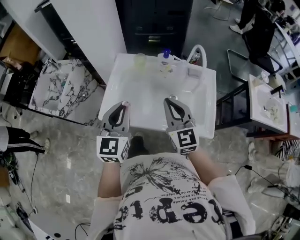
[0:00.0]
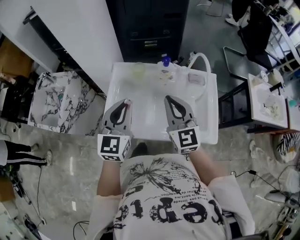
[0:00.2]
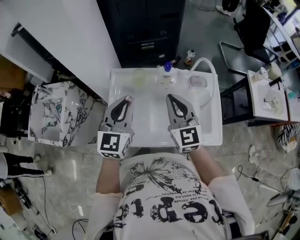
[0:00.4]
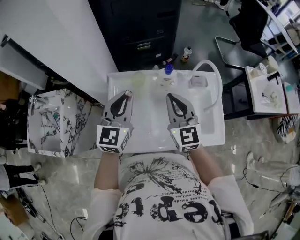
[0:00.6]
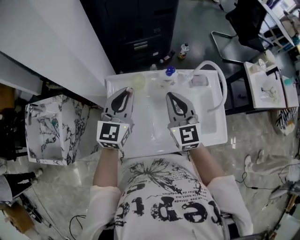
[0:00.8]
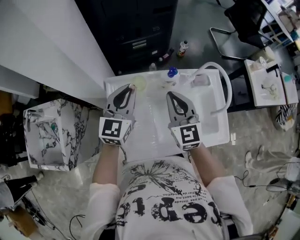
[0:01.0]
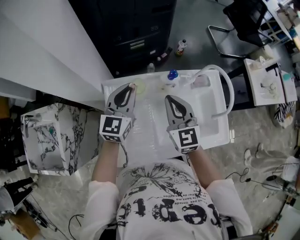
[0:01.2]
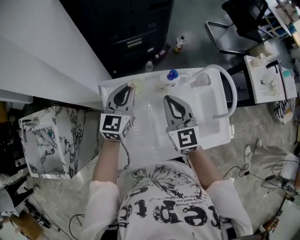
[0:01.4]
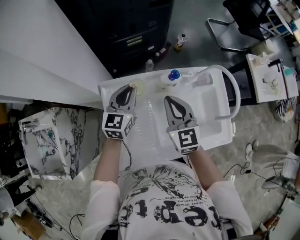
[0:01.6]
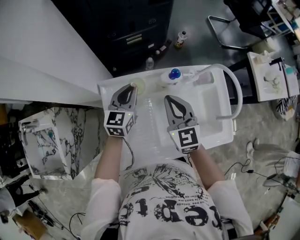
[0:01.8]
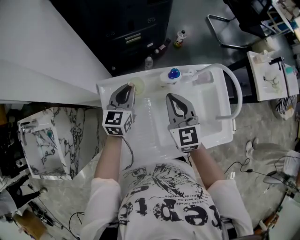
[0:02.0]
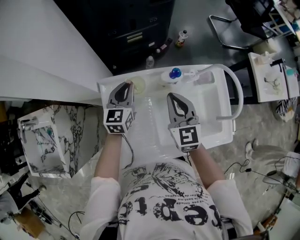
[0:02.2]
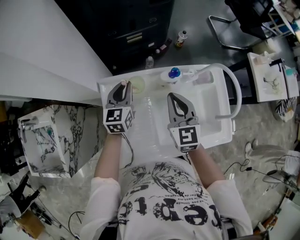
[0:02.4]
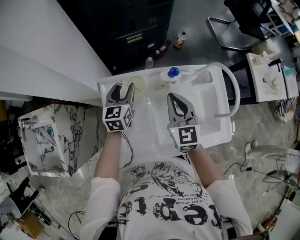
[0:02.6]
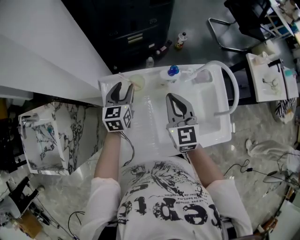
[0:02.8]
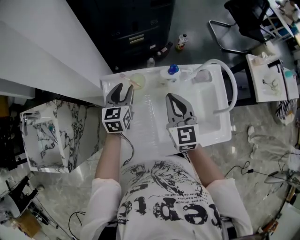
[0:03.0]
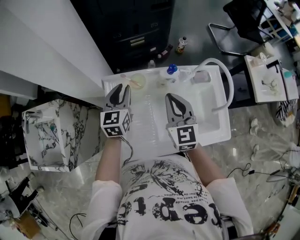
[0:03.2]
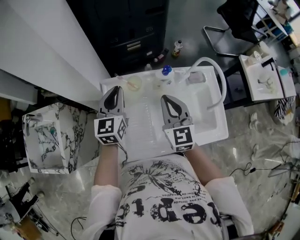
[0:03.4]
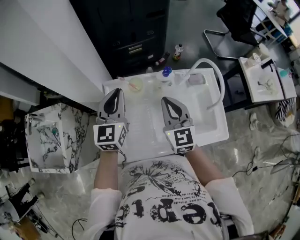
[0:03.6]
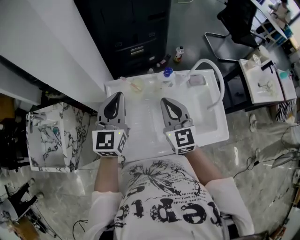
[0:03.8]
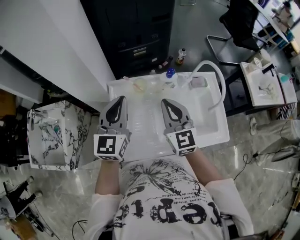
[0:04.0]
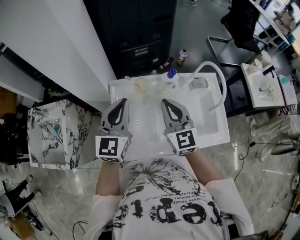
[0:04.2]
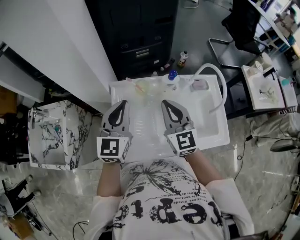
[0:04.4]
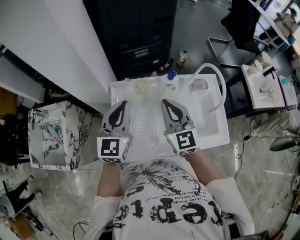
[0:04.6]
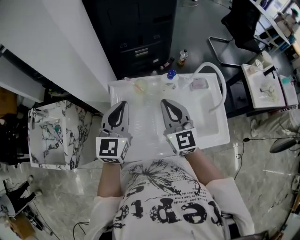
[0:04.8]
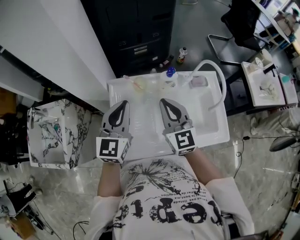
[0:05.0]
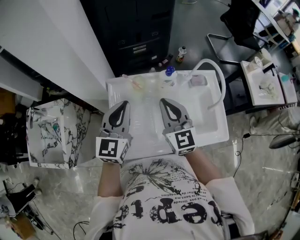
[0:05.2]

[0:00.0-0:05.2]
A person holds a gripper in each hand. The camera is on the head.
0:00.0 to 0:01.8: The right gripper moves forward and downward, about 25 cm, and turns by some 20 degrees. The left gripper shifts roughly 35 cm forward and downward, and turns by approximately 30 degrees.
0:01.8 to 0:03.4: The right gripper goes some 5 cm backward. Meanwhile the left gripper moves upward and backward, about 10 cm, and opens and closes again.
0:03.4 to 0:05.2: The left gripper moves backward and upward, some 10 cm.

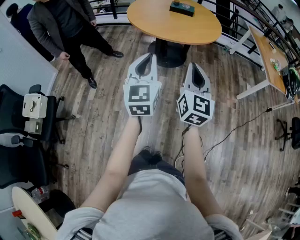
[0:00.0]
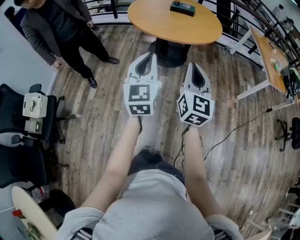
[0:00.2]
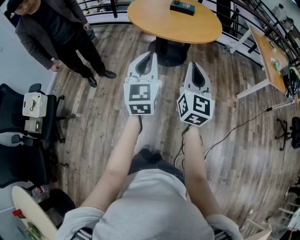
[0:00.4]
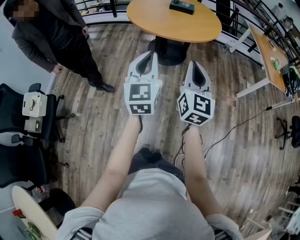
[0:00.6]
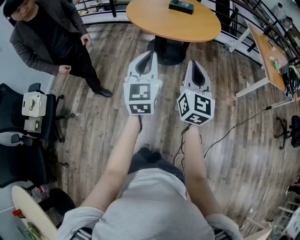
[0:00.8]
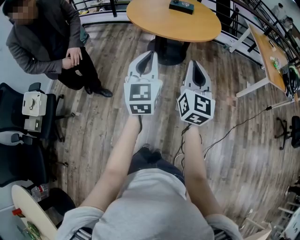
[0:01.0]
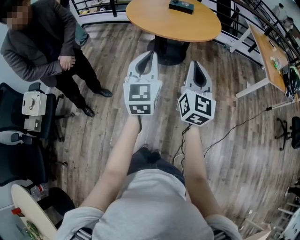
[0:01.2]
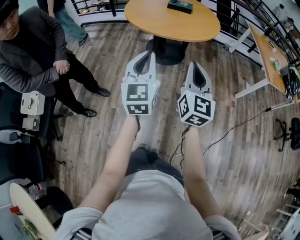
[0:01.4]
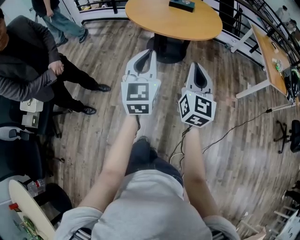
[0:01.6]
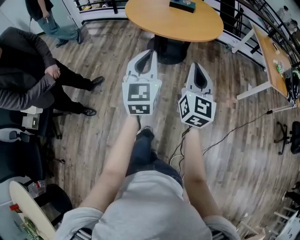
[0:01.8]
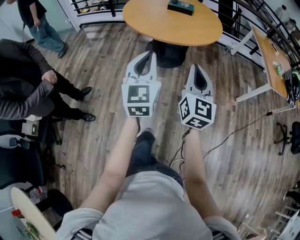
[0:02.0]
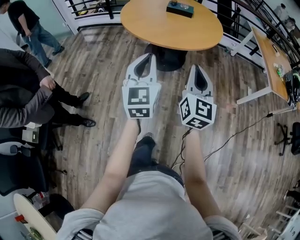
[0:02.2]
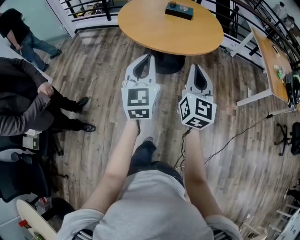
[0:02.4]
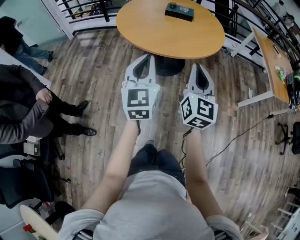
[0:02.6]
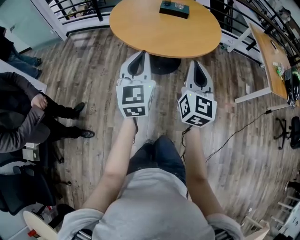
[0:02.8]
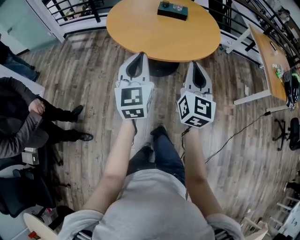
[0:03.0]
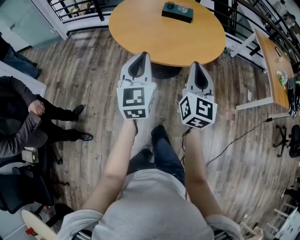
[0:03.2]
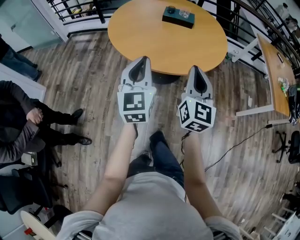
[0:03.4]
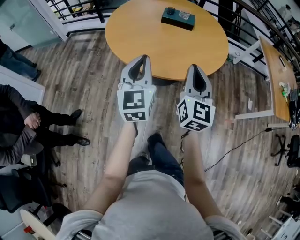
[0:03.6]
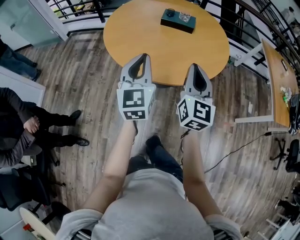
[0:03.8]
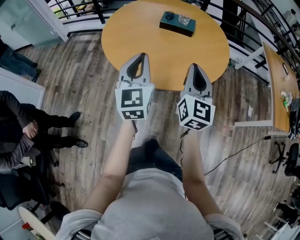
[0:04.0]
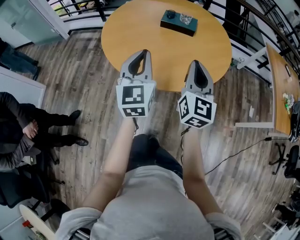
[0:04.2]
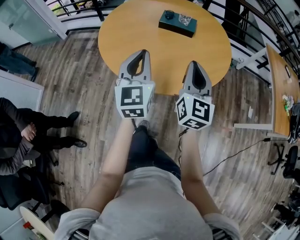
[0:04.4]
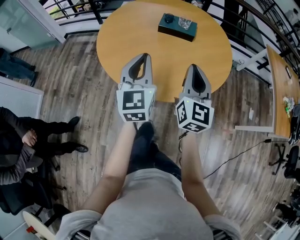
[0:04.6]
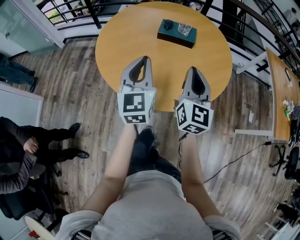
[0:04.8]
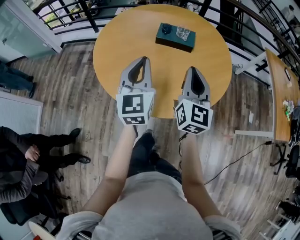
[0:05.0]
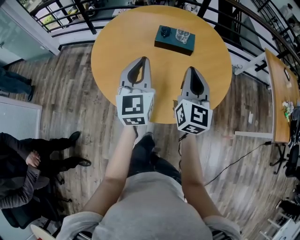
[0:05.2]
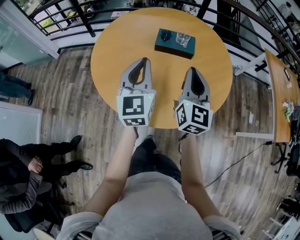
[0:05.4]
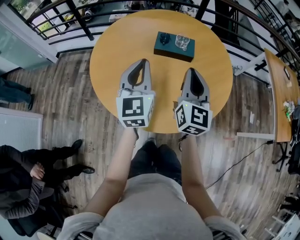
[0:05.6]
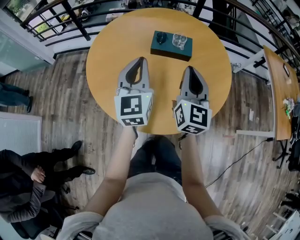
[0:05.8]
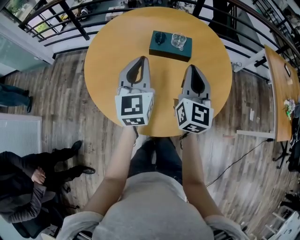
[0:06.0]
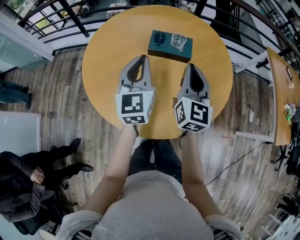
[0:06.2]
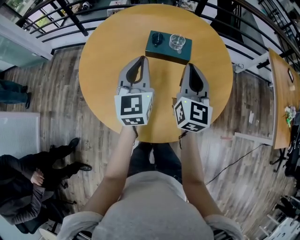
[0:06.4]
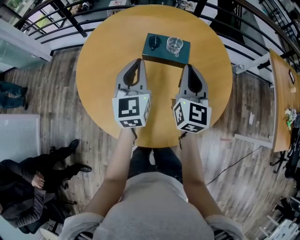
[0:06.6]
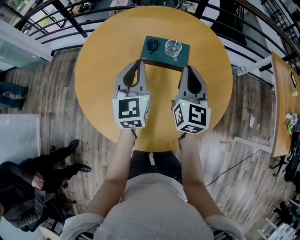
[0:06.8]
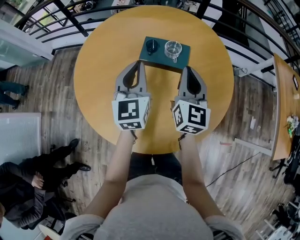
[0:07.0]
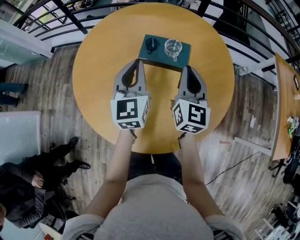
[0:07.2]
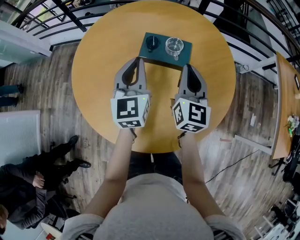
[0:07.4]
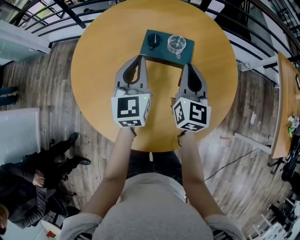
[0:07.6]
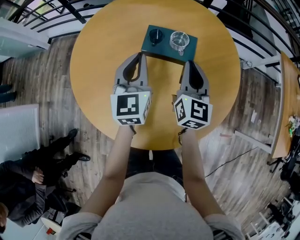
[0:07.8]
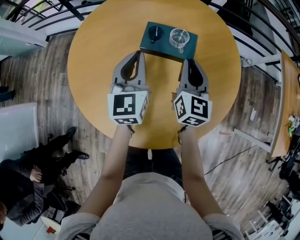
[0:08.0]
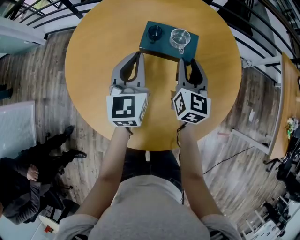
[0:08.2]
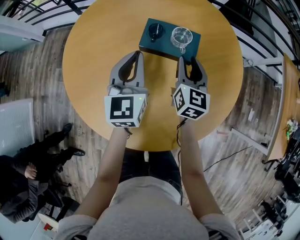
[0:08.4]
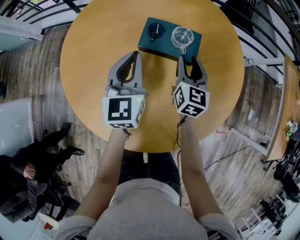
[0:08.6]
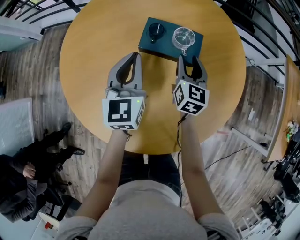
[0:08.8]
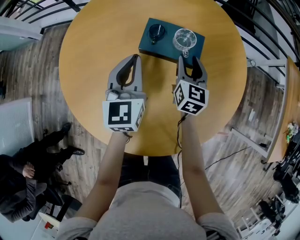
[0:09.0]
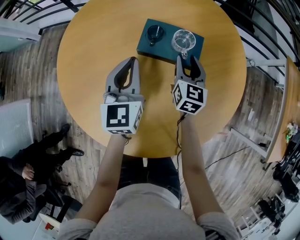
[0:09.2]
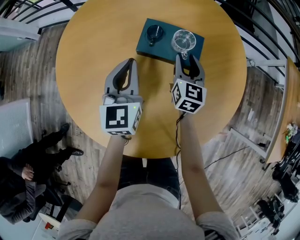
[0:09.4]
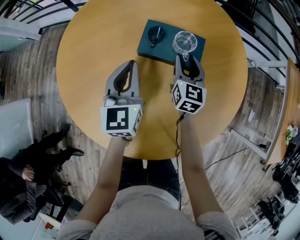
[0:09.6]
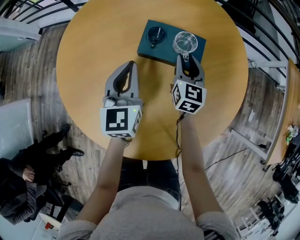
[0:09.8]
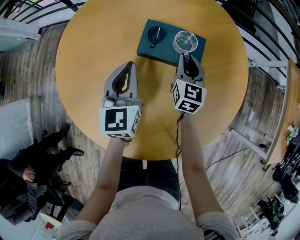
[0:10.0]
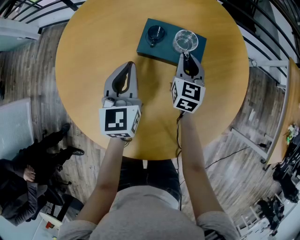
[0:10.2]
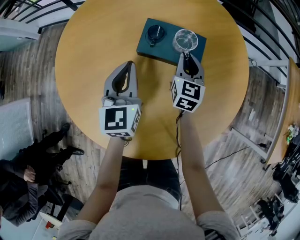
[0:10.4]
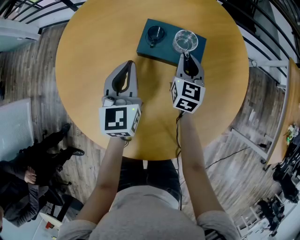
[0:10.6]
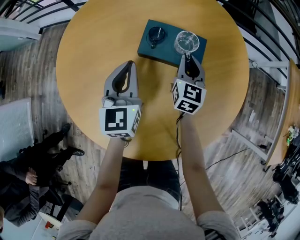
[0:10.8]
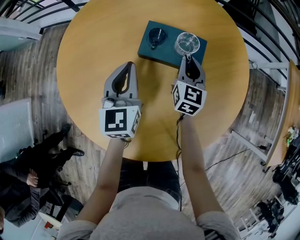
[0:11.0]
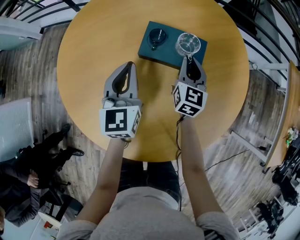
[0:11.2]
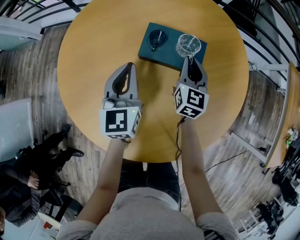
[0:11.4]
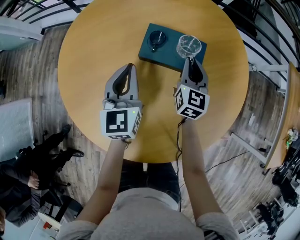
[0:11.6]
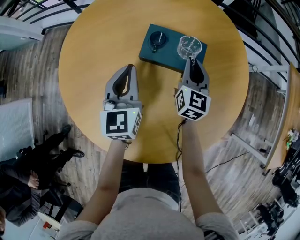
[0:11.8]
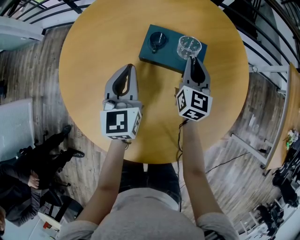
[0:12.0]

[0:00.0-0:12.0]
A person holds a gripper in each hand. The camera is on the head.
0:00.0 to 0:01.6: The grippers stay close to where they were, moving slightly.
0:01.6 to 0:03.0: The grippers both shift forward by about 25 cm.
0:03.0 to 0:04.4: The grippers both shift forward by approximately 25 cm.
0:04.4 to 0:06.0: The grippers both shift forward by roughly 20 cm.
0:06.0 to 0:07.6: Both grippers move forward and downward, approximately 15 cm.
0:07.6 to 0:09.0: The right gripper moves downward and forward, about 15 cm, and opens. The left gripper shifts approximately 5 cm downward.
0:09.0 to 0:10.4: The right gripper closes its fingers.
0:10.4 to 0:12.0: The grippers stay close to where they were, moving slightly.

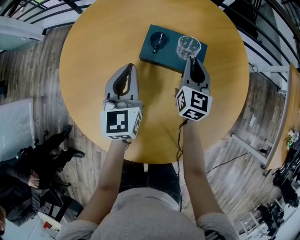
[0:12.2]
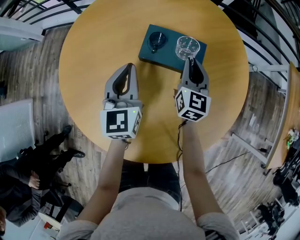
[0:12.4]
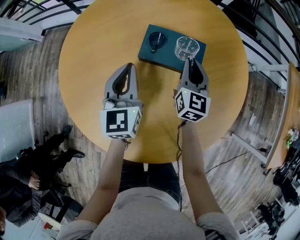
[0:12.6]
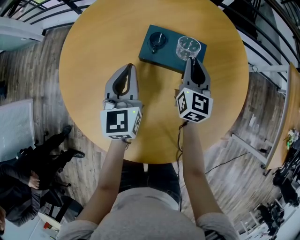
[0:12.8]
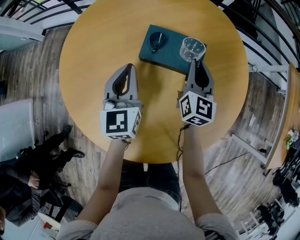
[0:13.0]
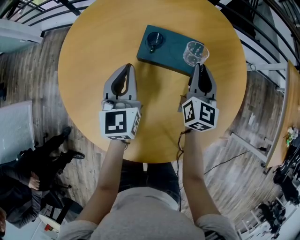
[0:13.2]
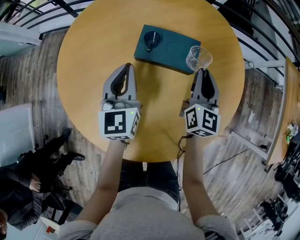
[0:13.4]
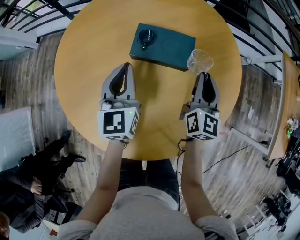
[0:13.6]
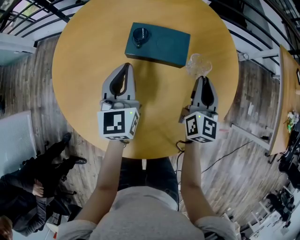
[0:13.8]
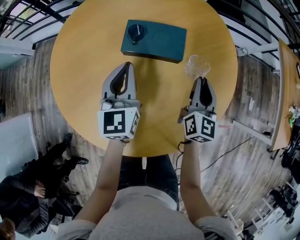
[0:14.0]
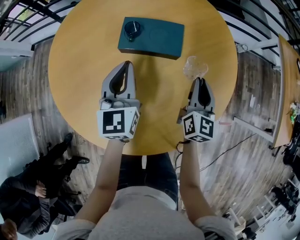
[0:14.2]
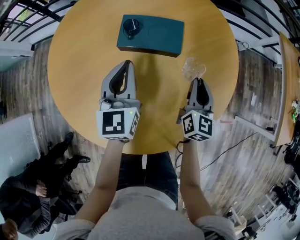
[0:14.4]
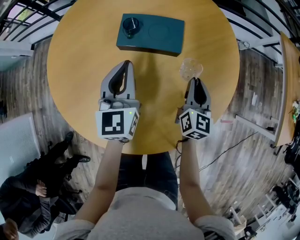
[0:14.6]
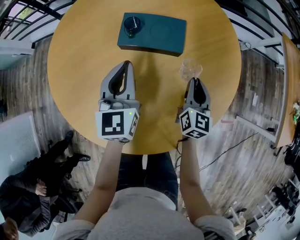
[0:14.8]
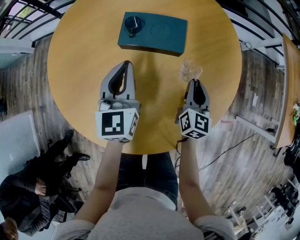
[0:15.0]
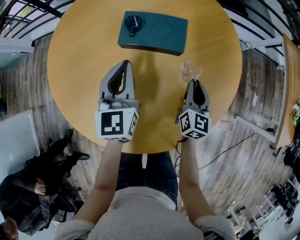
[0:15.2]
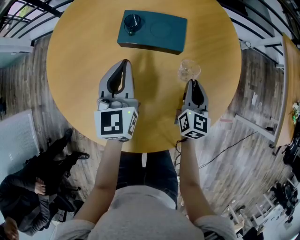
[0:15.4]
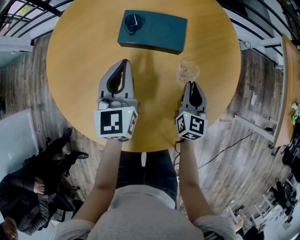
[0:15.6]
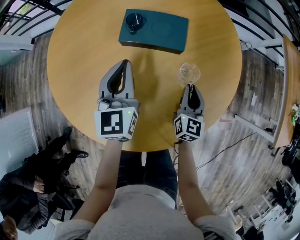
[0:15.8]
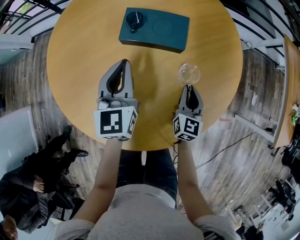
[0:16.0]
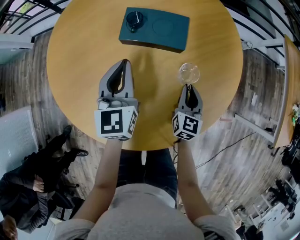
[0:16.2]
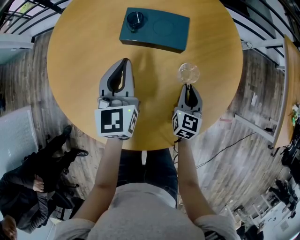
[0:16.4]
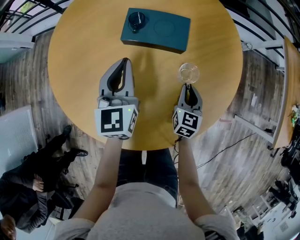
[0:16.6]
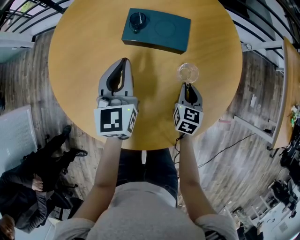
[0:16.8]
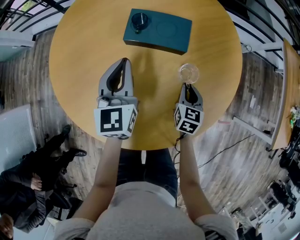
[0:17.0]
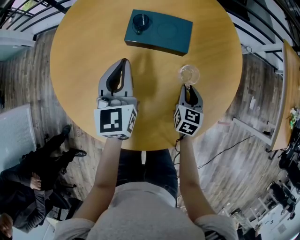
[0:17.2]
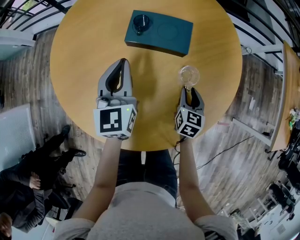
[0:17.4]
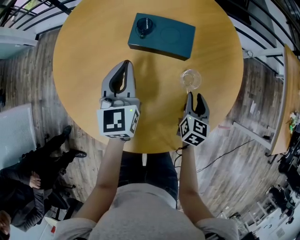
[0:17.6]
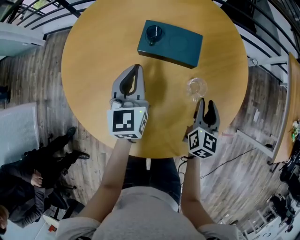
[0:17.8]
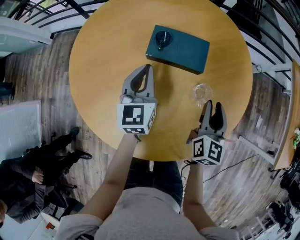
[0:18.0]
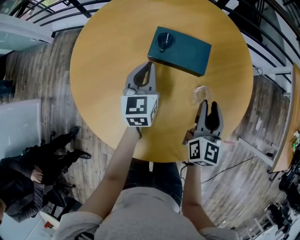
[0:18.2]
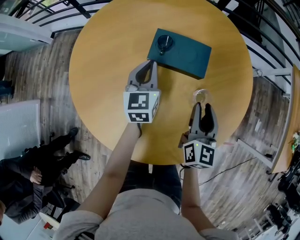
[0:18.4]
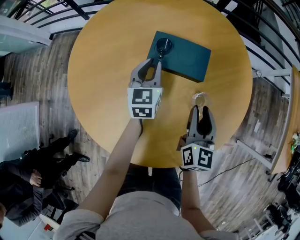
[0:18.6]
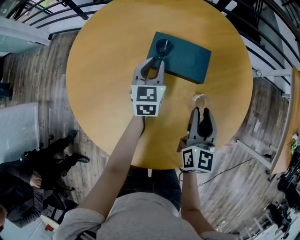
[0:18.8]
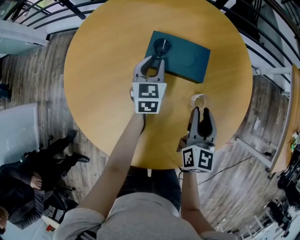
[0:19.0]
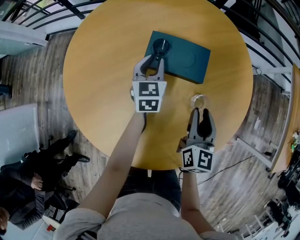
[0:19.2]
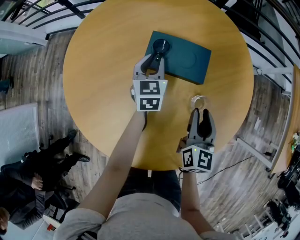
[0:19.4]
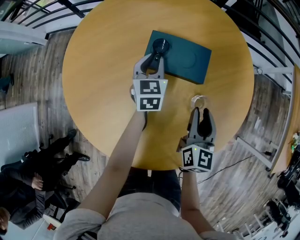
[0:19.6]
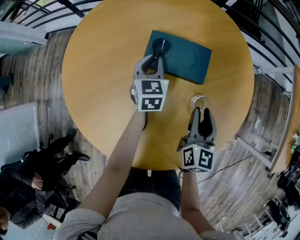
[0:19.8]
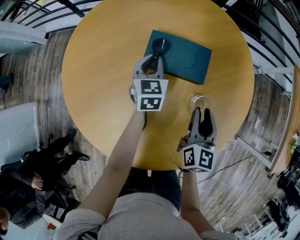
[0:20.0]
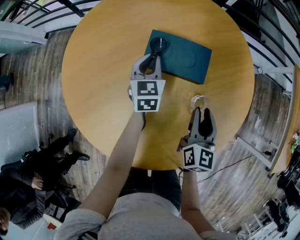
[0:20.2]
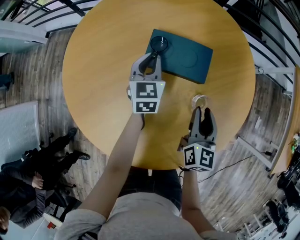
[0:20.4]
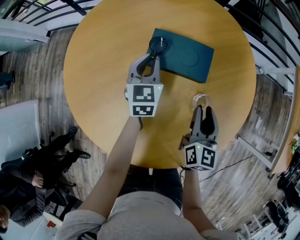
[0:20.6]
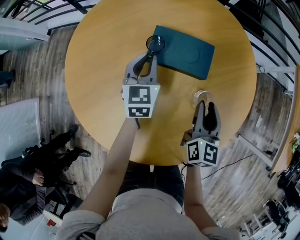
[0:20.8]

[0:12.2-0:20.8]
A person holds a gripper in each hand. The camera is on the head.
0:12.2 to 0:13.6: The right gripper shifts some 10 cm backward and to the right.
0:13.6 to 0:15.0: The right gripper goes some 10 cm downward and backward. Meanwhile the left gripper changes place by approximately 5 cm.
0:15.0 to 0:16.6: The right gripper shifts by some 5 cm.
0:16.6 to 0:18.0: The right gripper shifts approximately 15 cm upward.
0:18.0 to 0:19.4: The left gripper heads forward and downward, covering approximately 15 cm, and opens its fingers.
0:19.4 to 0:20.8: The left gripper ends up roughly 5 cm from where it was.
